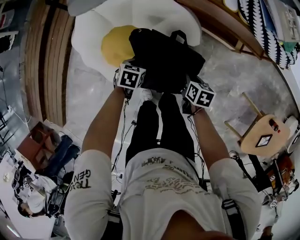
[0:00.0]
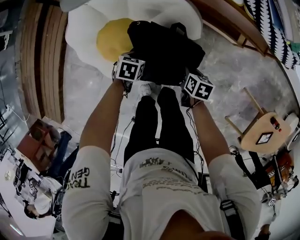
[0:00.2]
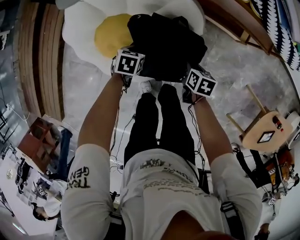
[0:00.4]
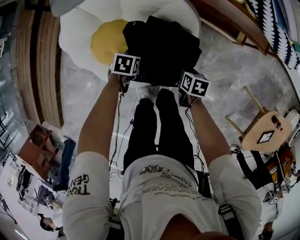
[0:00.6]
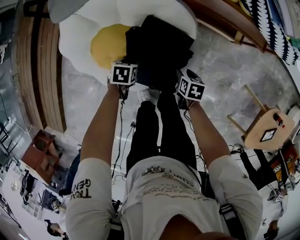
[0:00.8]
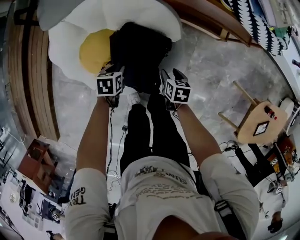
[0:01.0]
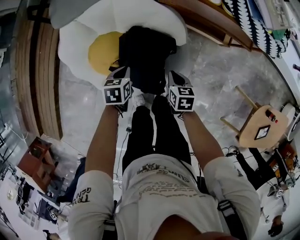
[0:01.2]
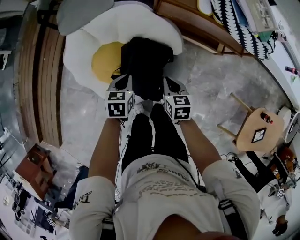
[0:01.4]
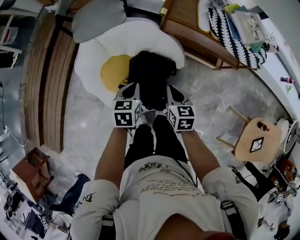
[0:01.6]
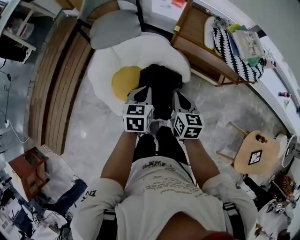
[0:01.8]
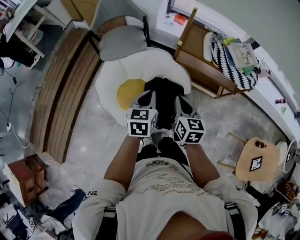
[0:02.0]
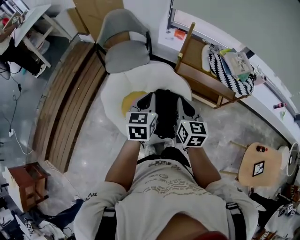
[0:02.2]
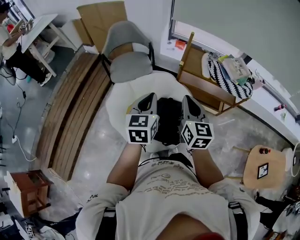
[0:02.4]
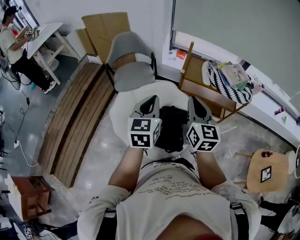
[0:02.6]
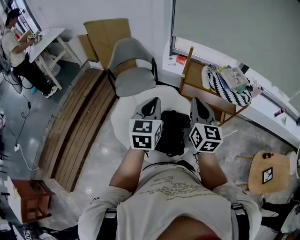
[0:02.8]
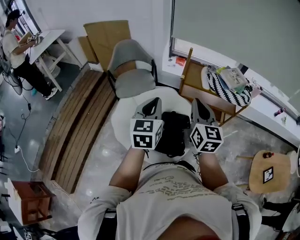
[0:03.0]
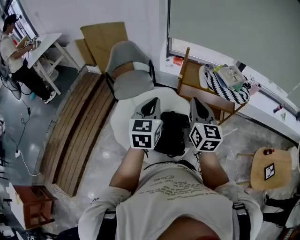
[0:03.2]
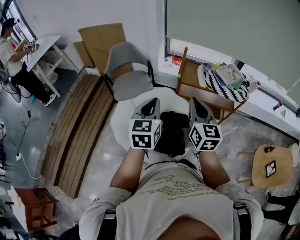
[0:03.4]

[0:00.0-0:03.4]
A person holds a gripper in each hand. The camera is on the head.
0:00.0 to 0:01.6: The two grippers go roughly 20 cm upward. The left gripper rotates approximately 20 degrees, and opens, then closes once more, while the right gripper swivels approximately 30 degrees, and opens and closes again.
0:01.6 to 0:03.4: The grippers both shift upward by roughly 35 cm. The right gripper tilts its fingers approximately 40 degrees upward. Meanwhile the left gripper tilts its fingers approximately 30 degrees upward.

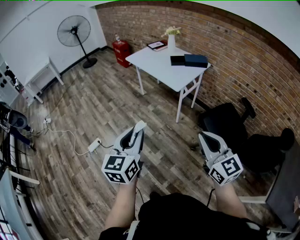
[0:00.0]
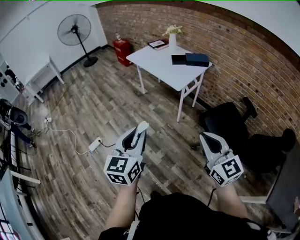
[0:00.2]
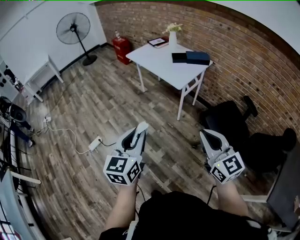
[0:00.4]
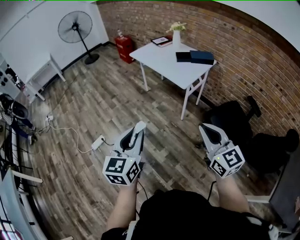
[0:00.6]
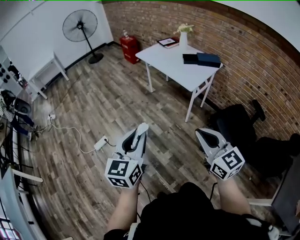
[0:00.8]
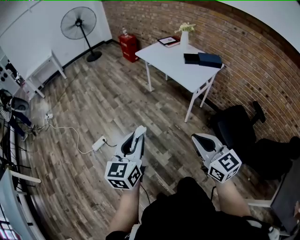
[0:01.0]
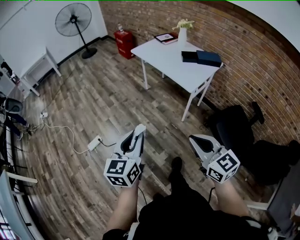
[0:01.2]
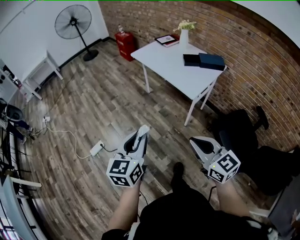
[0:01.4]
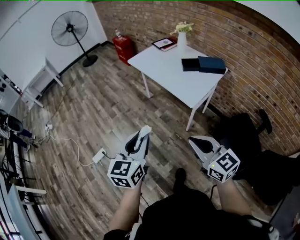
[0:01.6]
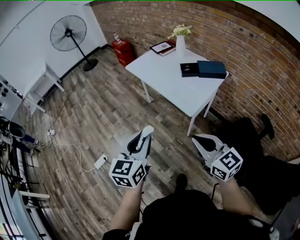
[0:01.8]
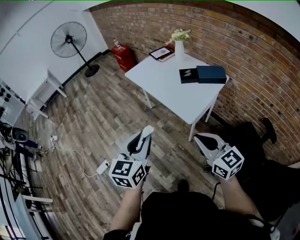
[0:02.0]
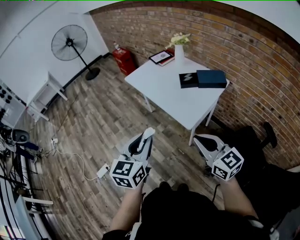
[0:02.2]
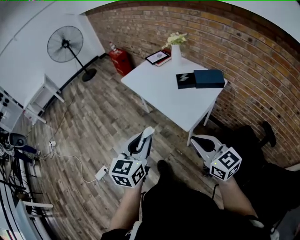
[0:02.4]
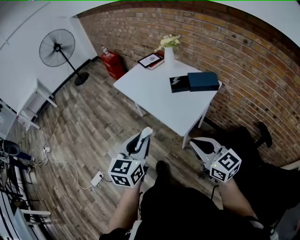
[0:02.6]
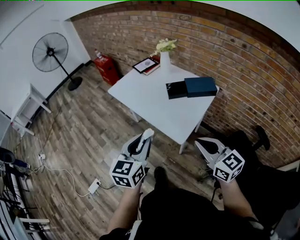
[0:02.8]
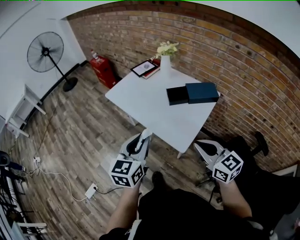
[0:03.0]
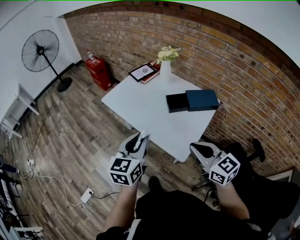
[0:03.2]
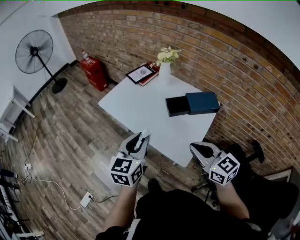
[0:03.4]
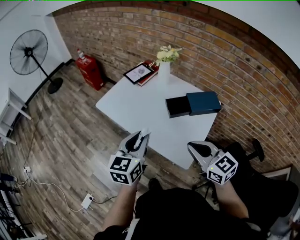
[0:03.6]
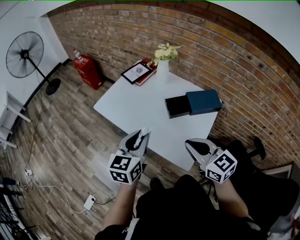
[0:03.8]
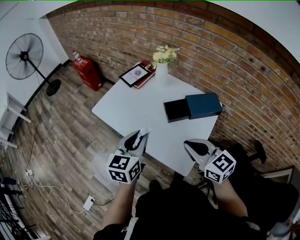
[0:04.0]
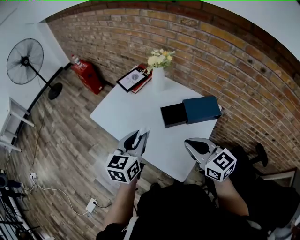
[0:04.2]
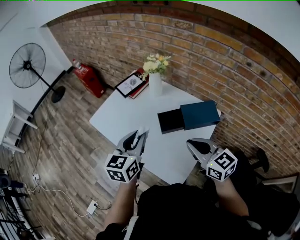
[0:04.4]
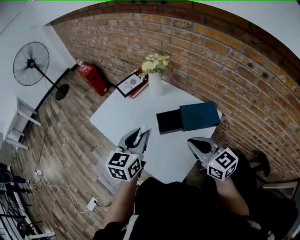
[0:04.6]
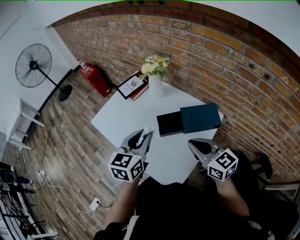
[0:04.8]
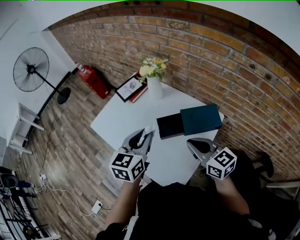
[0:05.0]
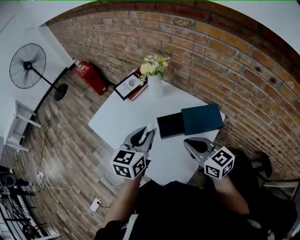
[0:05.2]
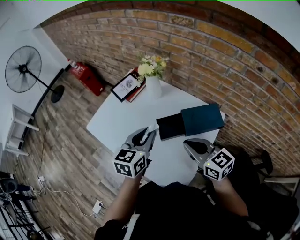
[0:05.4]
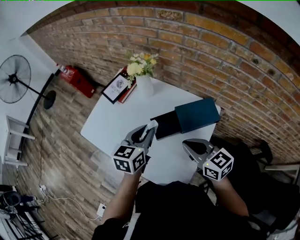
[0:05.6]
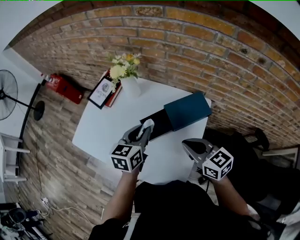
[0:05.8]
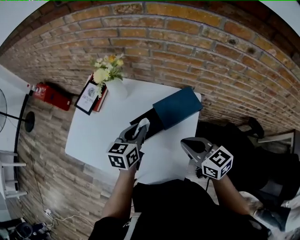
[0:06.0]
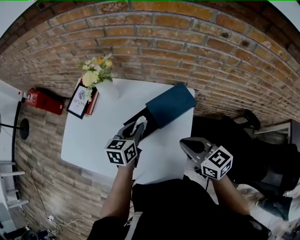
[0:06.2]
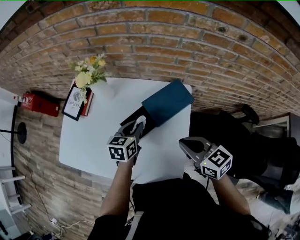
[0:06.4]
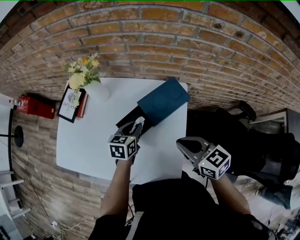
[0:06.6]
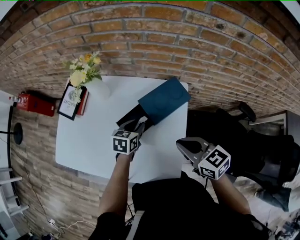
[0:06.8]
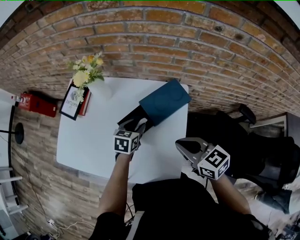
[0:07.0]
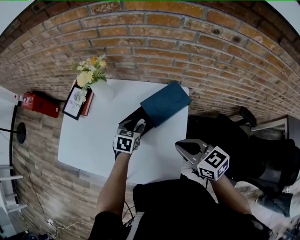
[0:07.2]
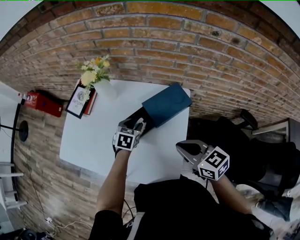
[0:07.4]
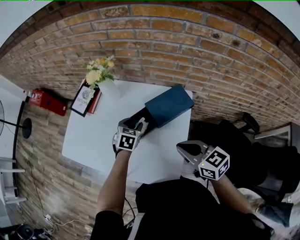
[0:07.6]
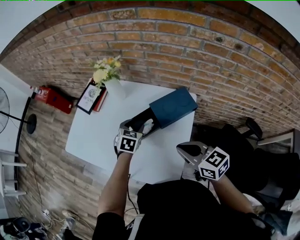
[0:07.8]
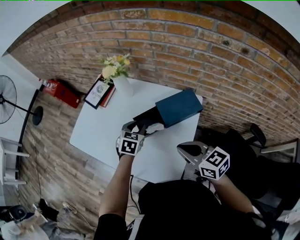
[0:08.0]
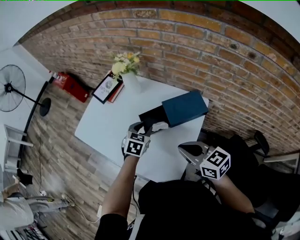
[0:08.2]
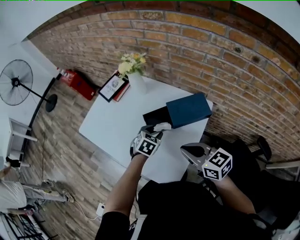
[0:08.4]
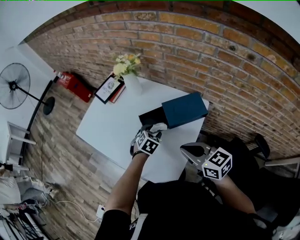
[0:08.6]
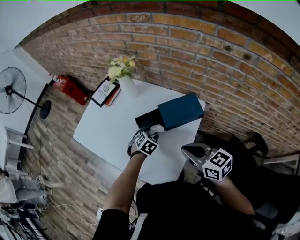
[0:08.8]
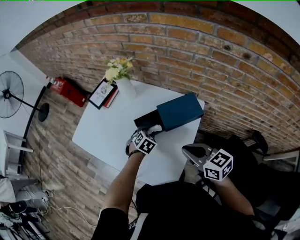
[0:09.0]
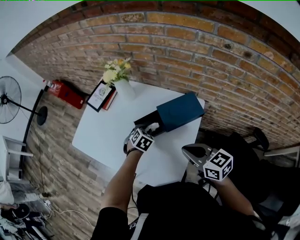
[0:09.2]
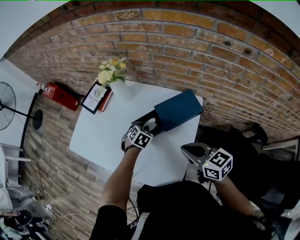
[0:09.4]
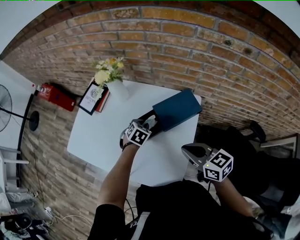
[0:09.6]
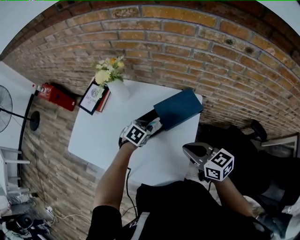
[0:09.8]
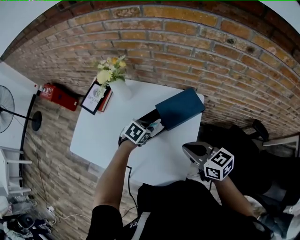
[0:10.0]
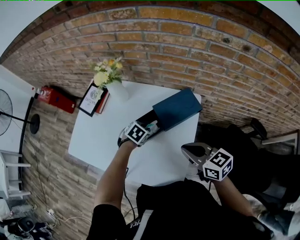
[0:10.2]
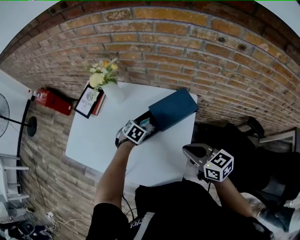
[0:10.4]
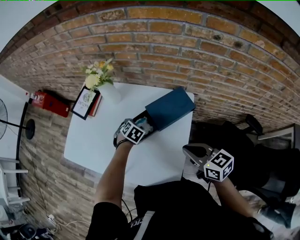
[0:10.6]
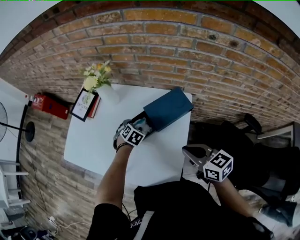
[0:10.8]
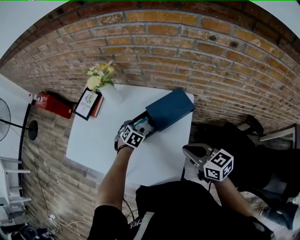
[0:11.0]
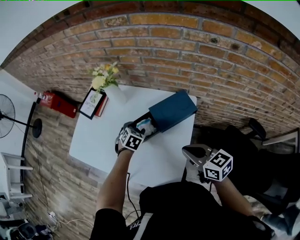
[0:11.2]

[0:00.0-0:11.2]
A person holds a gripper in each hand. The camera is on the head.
0:00.0 to 0:01.6: The two grippers go approximately 25 cm forward.
0:01.6 to 0:03.2: The two grippers go approximately 35 cm forward.
0:03.2 to 0:04.8: Both grippers move forward and to the right, about 25 cm.
0:04.8 to 0:06.4: The right gripper is displaced downward by some 5 cm, and rotates approximately 30 degrees. Meanwhile the left gripper shifts roughly 20 cm downward, and turns by roughly 30 degrees.
0:06.4 to 0:08.0: The left gripper changes place by approximately 5 cm, and swivels approximately 30 degrees.
0:08.0 to 0:09.6: The left gripper moves downward, roughly 10 cm, and rotates roughly 20 degrees.
0:09.6 to 0:11.2: The left gripper opens its fingers.

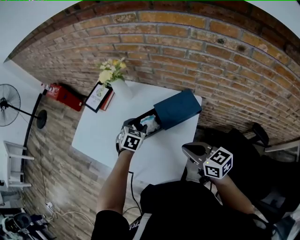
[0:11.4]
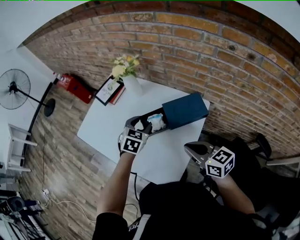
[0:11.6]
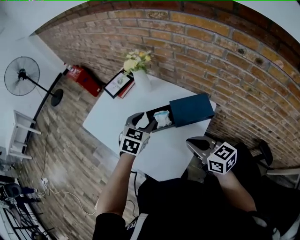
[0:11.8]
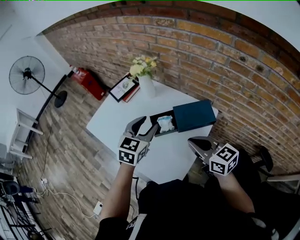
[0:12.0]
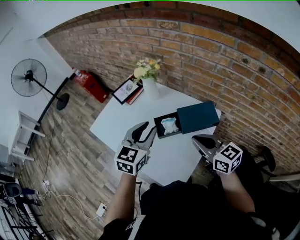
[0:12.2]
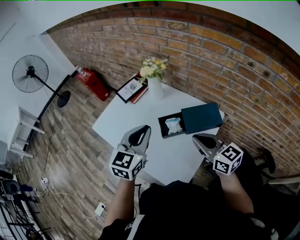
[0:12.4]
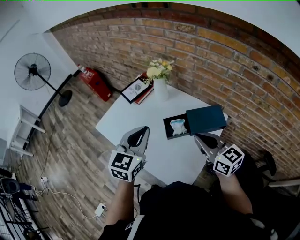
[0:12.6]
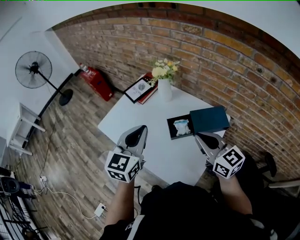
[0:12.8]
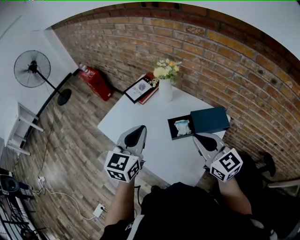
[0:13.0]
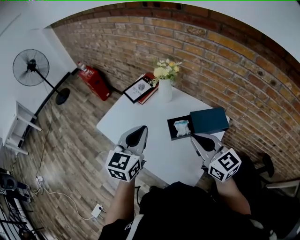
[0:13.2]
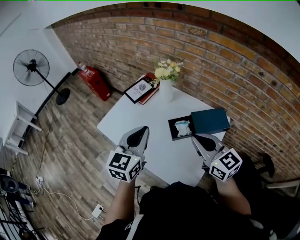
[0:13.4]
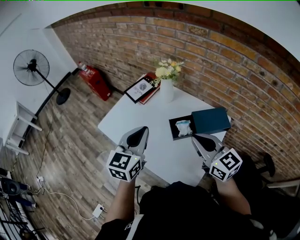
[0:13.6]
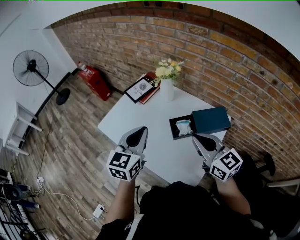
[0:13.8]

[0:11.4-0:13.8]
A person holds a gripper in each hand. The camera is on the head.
0:11.4 to 0:12.6: The left gripper shifts roughly 30 cm upward, to the left and backward, angles its fingers upward, by roughly 40 degrees, and closes its fingers. Meanwhile the right gripper travels upward and to the left by some 10 cm.
0:12.6 to 0:13.8: The grippers both shift to the left by approximately 5 cm.

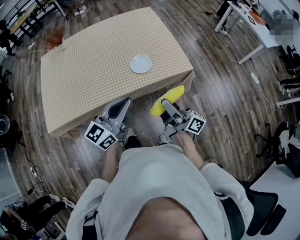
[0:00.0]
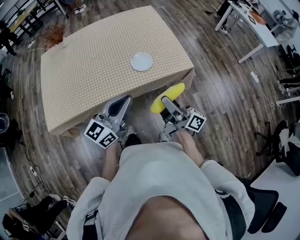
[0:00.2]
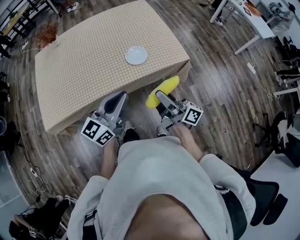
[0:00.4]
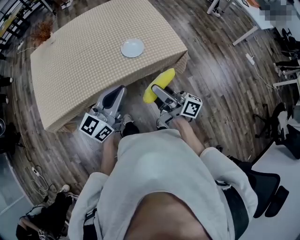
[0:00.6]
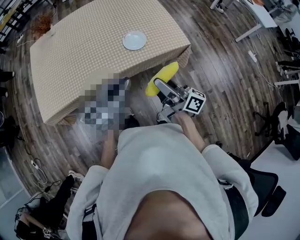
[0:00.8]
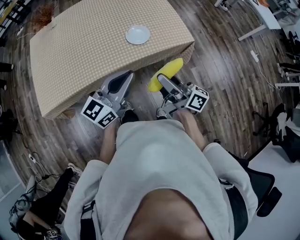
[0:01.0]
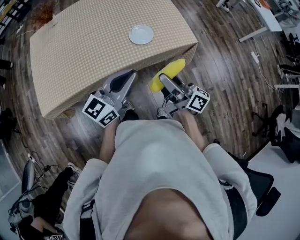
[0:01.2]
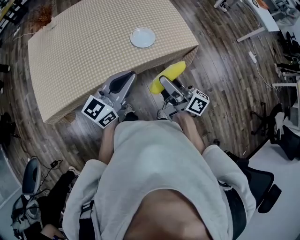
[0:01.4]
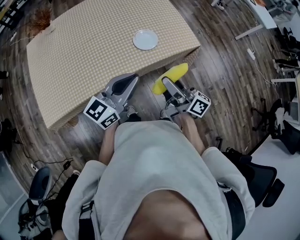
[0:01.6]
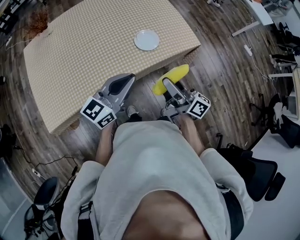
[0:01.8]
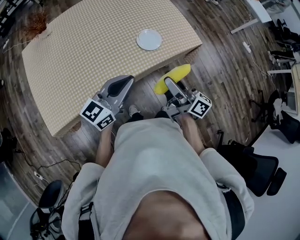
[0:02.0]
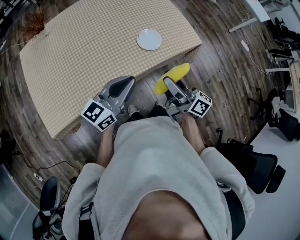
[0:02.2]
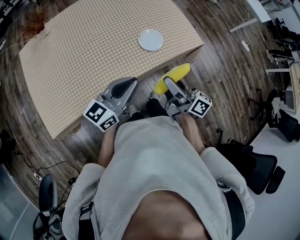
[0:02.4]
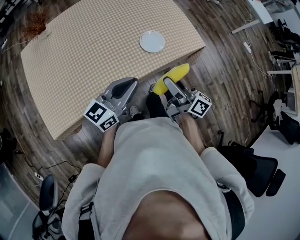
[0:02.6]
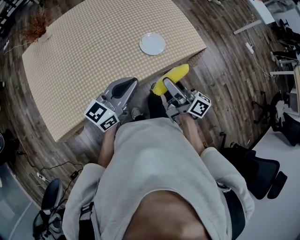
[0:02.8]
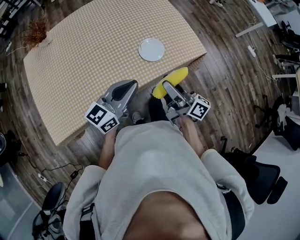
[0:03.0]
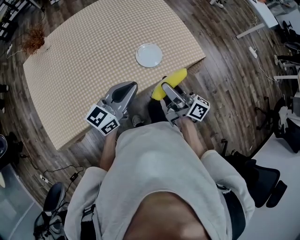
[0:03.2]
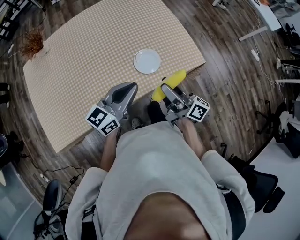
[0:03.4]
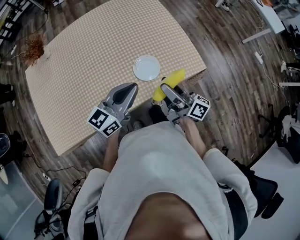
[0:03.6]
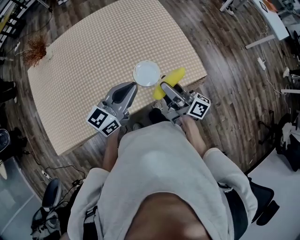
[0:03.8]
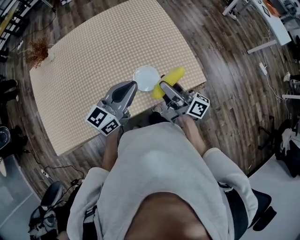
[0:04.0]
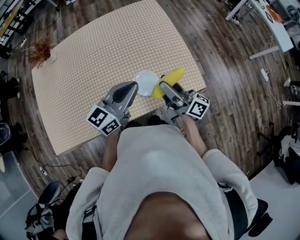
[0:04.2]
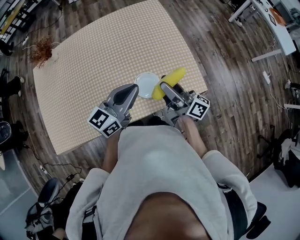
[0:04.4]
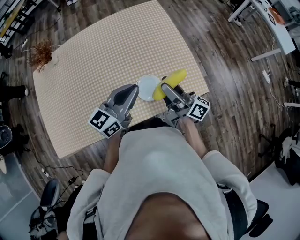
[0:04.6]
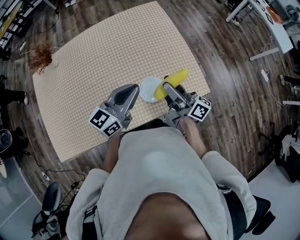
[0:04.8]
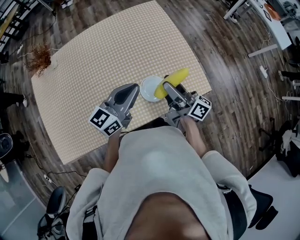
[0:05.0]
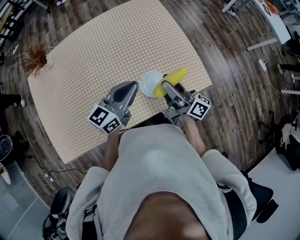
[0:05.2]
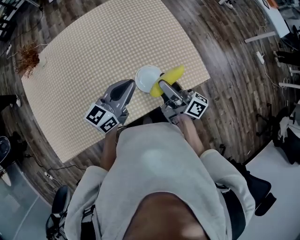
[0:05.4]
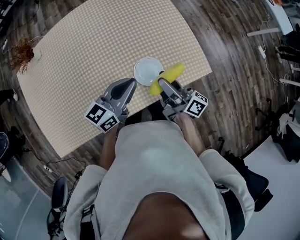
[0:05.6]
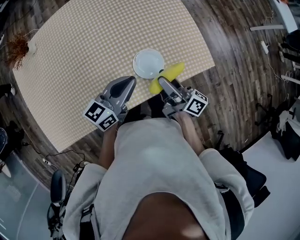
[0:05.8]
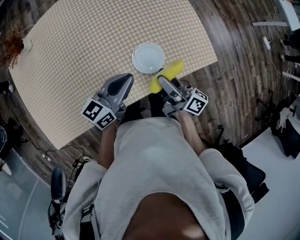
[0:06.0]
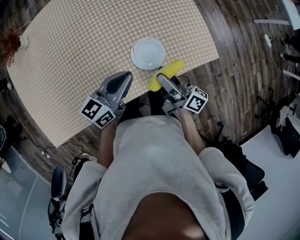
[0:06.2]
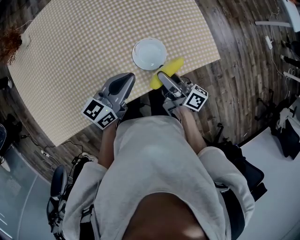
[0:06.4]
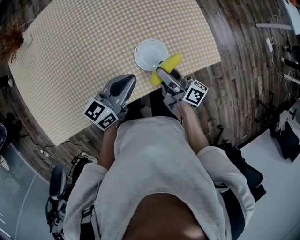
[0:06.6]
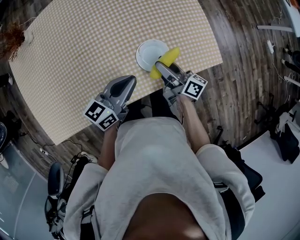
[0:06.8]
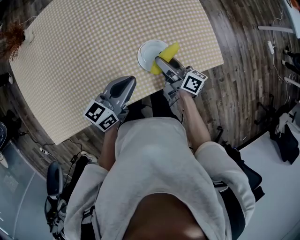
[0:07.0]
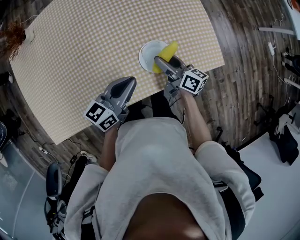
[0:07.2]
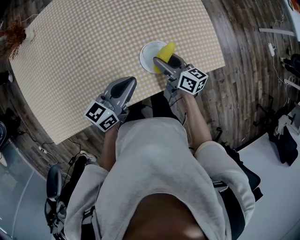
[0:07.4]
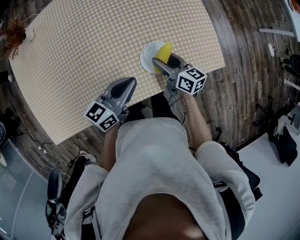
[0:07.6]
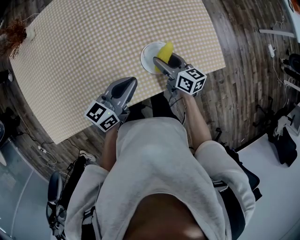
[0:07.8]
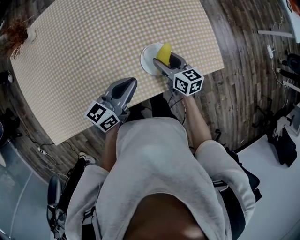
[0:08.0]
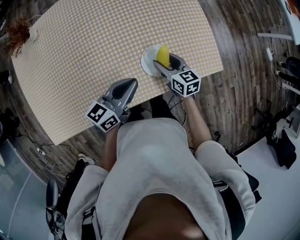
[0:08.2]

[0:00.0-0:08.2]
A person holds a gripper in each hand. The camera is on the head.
0:00.0 to 0:01.6: The two grippers go roughly 10 cm to the left.
0:01.6 to 0:03.2: Both grippers move forward, roughly 10 cm.
0:03.2 to 0:05.0: Both grippers travel together forward, roughly 20 cm.
0:05.0 to 0:06.6: Both grippers move downward, approximately 15 cm.
0:06.6 to 0:08.2: The right gripper is displaced downward and forward by about 10 cm, and changes its angle by some 50 degrees.
